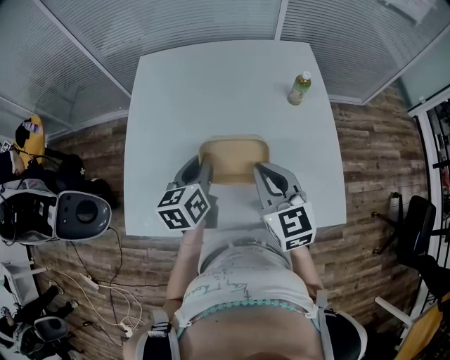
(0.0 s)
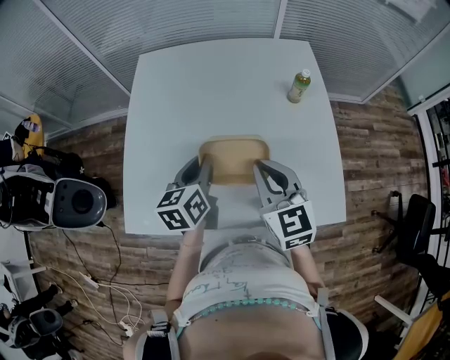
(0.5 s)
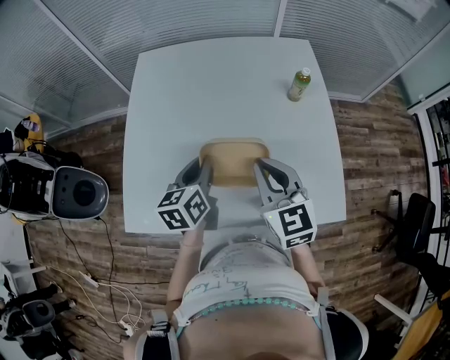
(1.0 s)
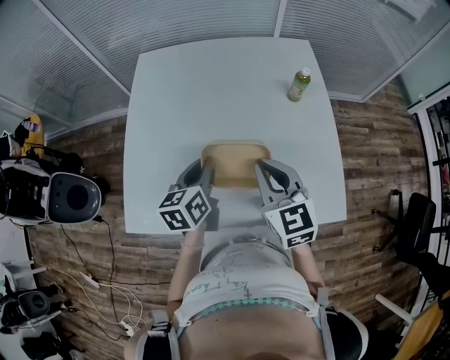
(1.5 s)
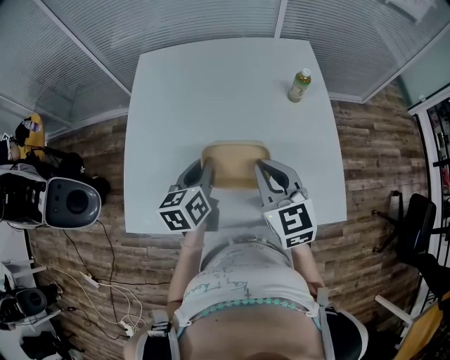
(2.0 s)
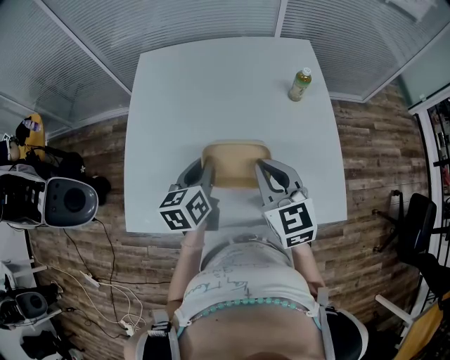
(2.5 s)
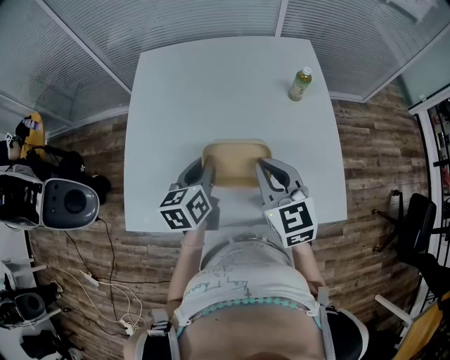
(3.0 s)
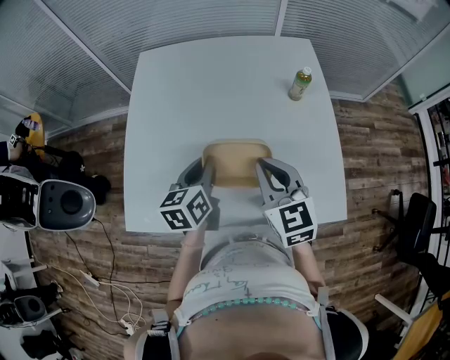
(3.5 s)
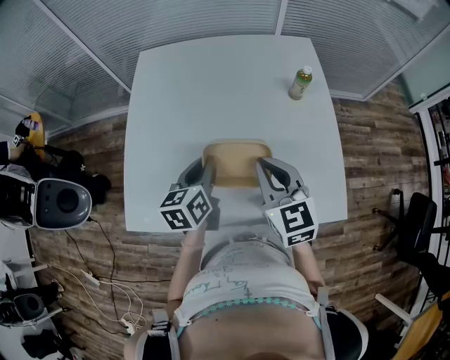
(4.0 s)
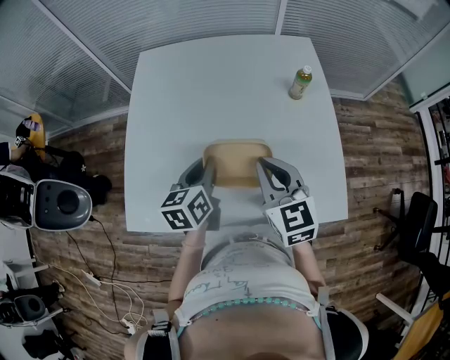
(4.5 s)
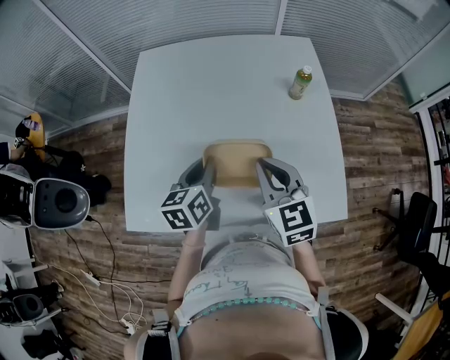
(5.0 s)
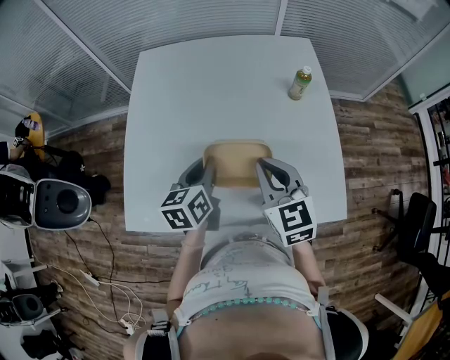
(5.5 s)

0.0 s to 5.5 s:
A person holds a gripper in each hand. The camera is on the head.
0.0 to 2.0 s: The grippers stay close to where they were, moving slightly.
2.0 to 3.5 s: Both grippers stay put.
3.5 to 5.5 s: The two grippers keep their place.

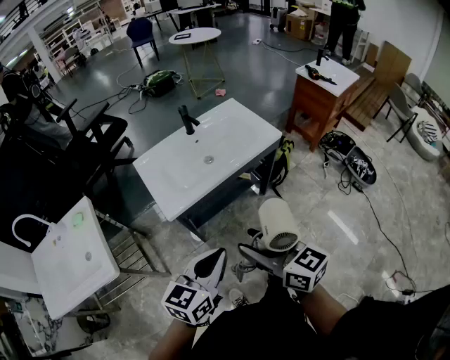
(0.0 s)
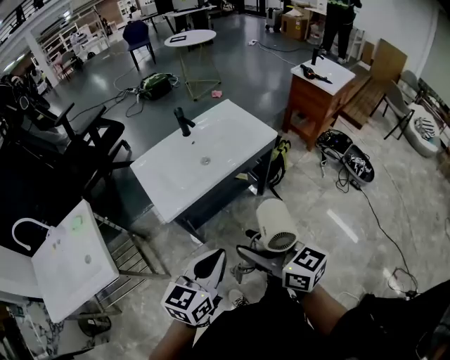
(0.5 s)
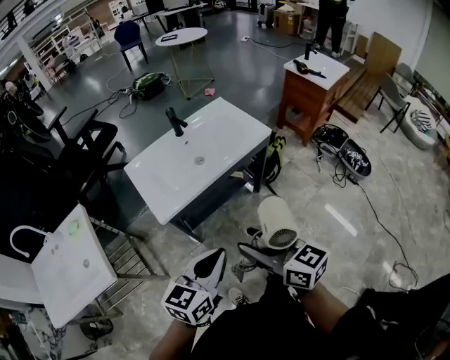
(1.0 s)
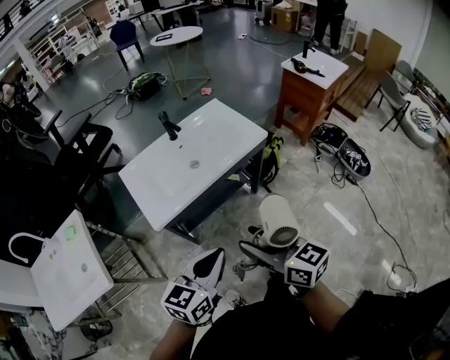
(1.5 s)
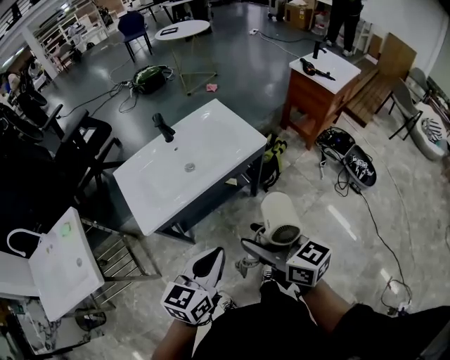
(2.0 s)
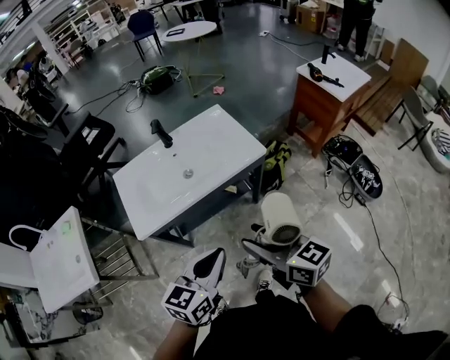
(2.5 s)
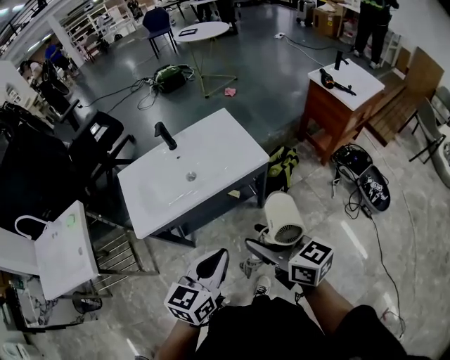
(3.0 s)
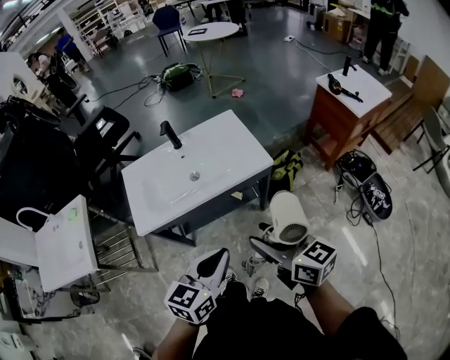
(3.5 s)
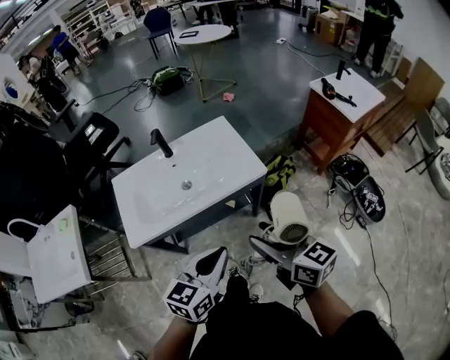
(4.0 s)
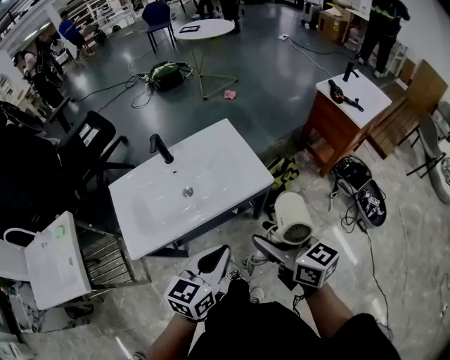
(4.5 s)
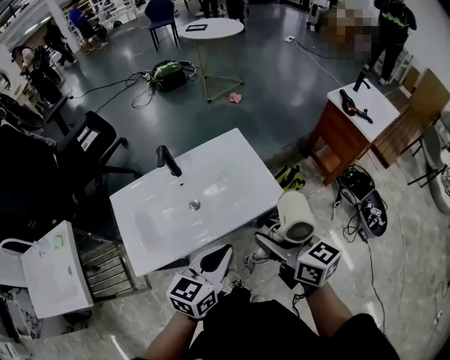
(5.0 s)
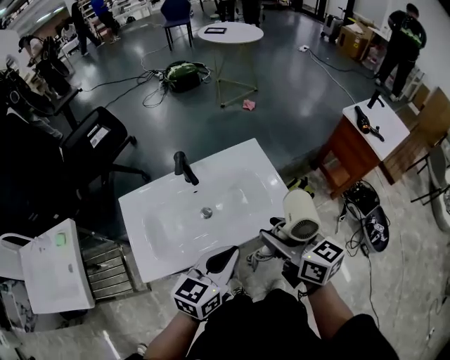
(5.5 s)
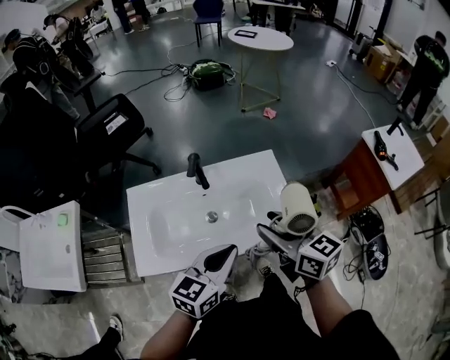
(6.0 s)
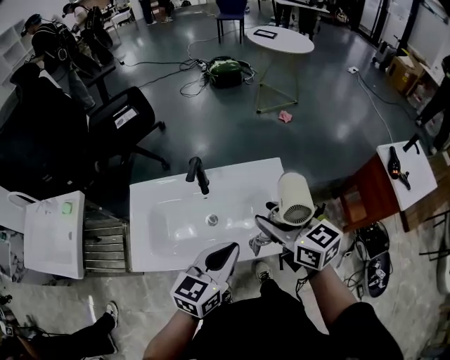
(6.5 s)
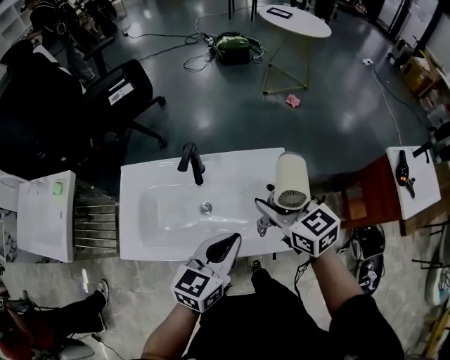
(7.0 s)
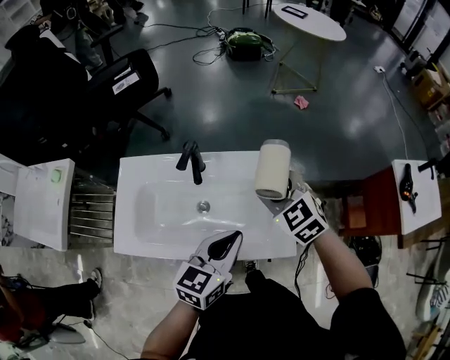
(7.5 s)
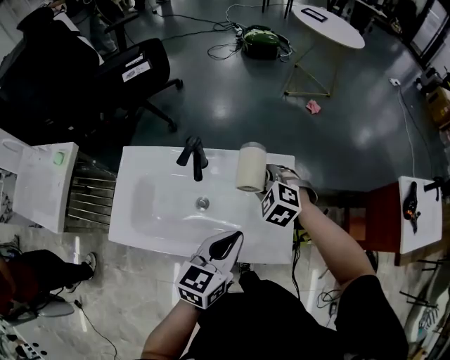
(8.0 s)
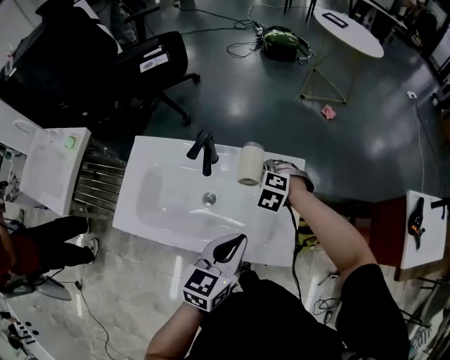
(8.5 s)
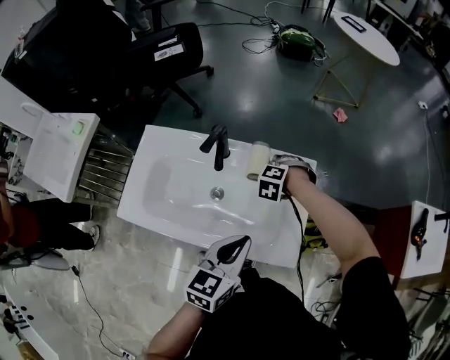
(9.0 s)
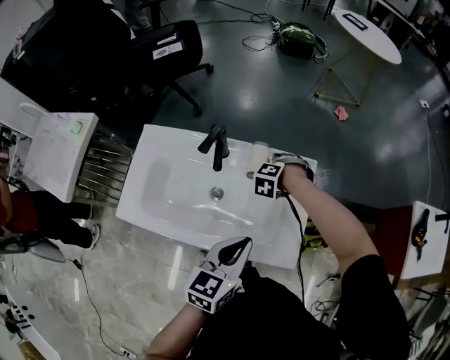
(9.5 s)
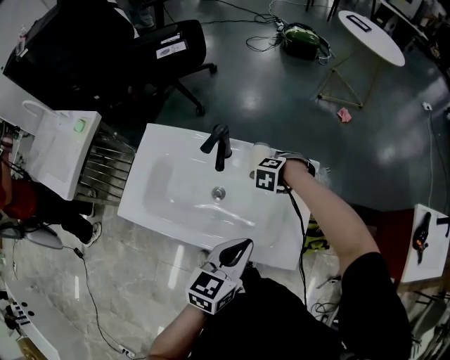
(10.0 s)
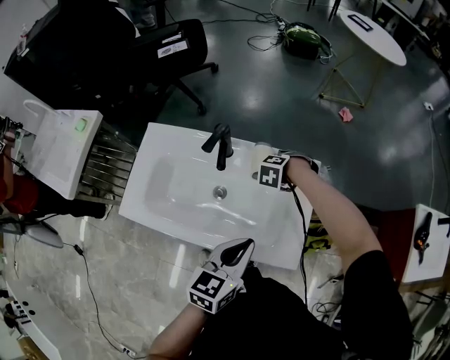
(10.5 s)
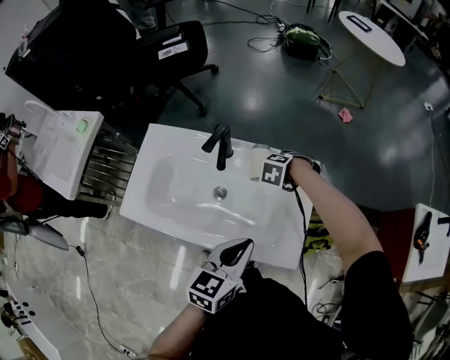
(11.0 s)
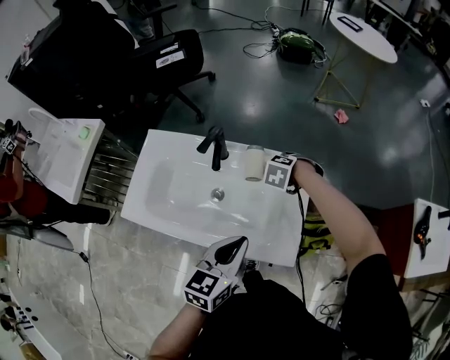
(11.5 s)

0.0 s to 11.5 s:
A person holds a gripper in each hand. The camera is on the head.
0.0 to 2.0 s: The grippers both shift to the right and forward by roughly 15 cm.
2.0 to 4.0 s: The grippers both shift to the right and forward by some 15 cm.
4.0 to 6.0 s: The two grippers go roughly 25 cm forward.
6.0 to 7.5 s: The right gripper travels forward and downward by some 20 cm, and rotates around the line of its fingers by about 40 degrees, counterclockwise from behind; the left gripper is displaced forward and to the right by some 10 cm.
7.5 to 9.5 s: The right gripper goes some 20 cm downward, and tips its fingers downward by some 40 degrees.
9.5 to 11.5 s: There are only small adjustments of the grippers.

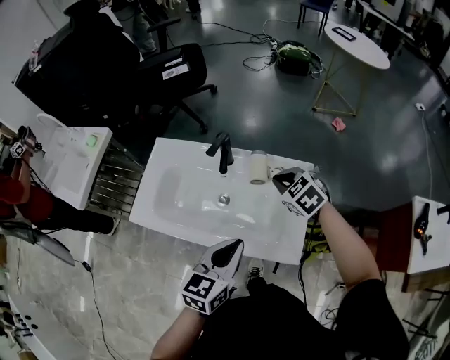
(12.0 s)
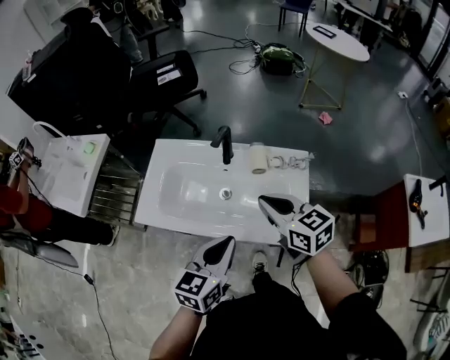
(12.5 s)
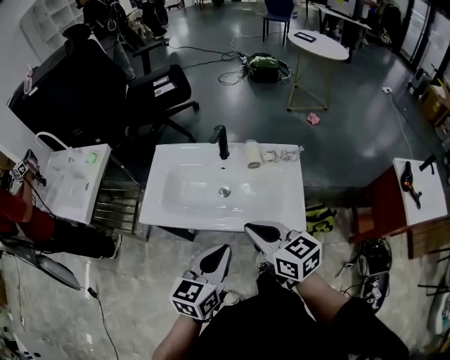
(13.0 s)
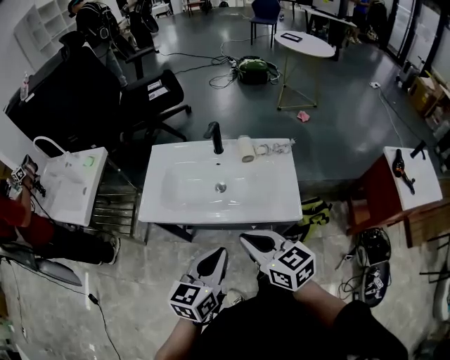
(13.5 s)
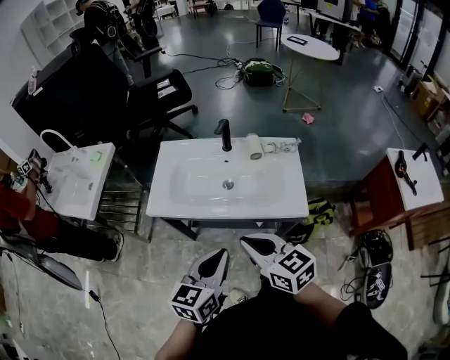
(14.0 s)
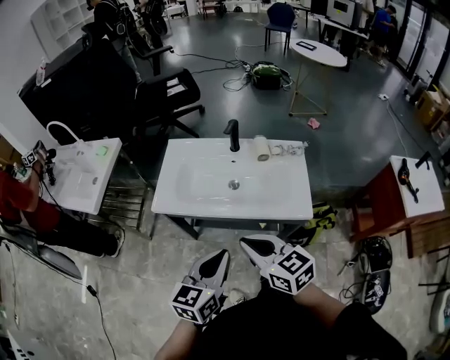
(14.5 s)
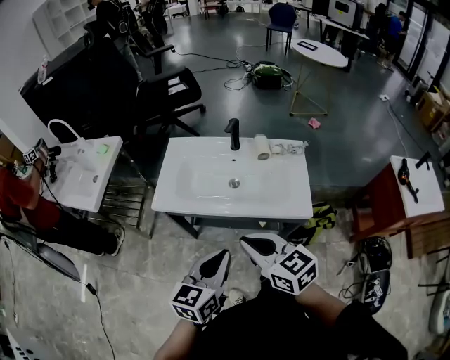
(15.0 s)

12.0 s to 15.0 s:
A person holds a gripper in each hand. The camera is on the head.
12.0 to 13.5 s: The left gripper shifts about 20 cm backward and to the left. Meanwhile the right gripper goes roughly 35 cm backward and to the left, and tilts its fingers some 30 degrees upward.
13.5 to 15.0 s: The left gripper moves approximately 5 cm. The right gripper moves to the left, approximately 5 cm.

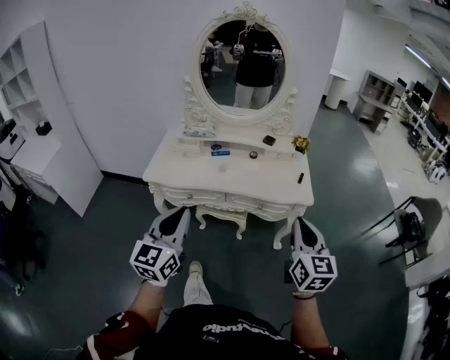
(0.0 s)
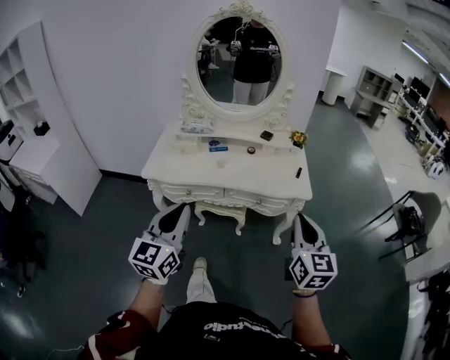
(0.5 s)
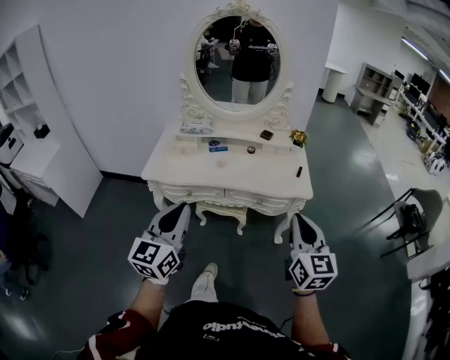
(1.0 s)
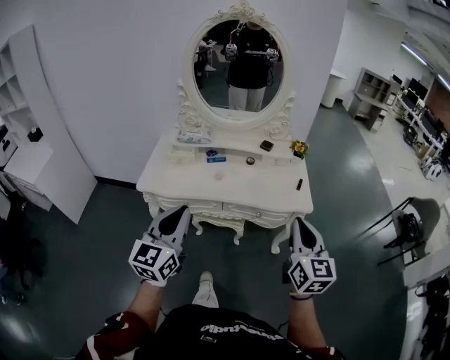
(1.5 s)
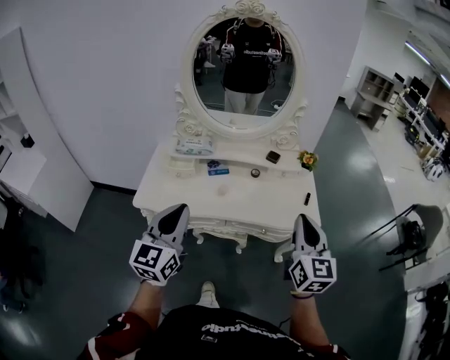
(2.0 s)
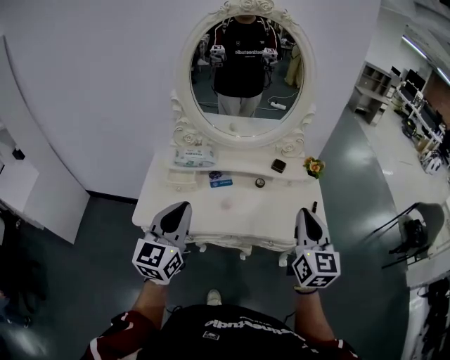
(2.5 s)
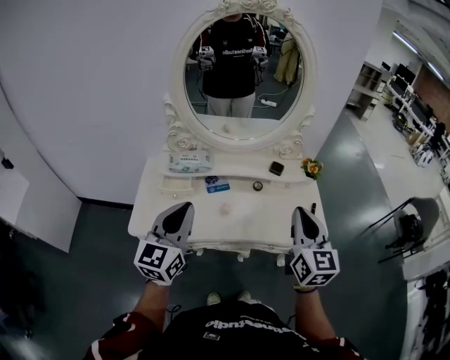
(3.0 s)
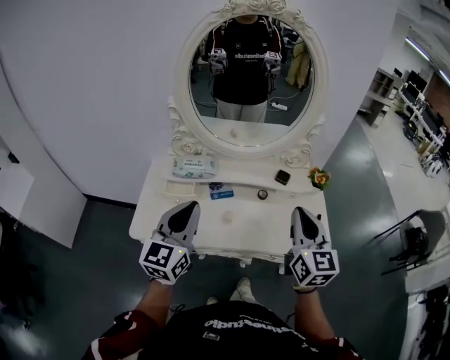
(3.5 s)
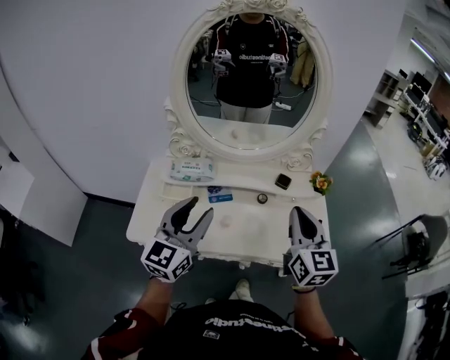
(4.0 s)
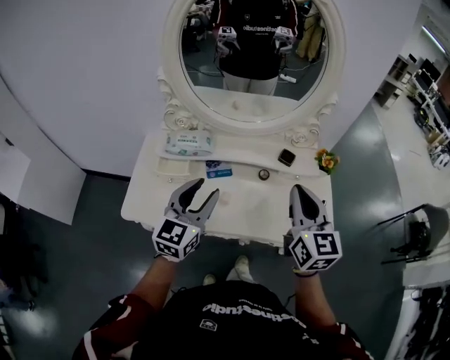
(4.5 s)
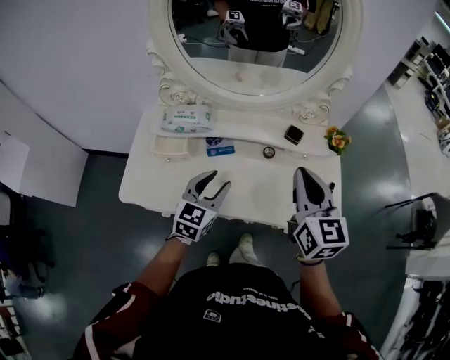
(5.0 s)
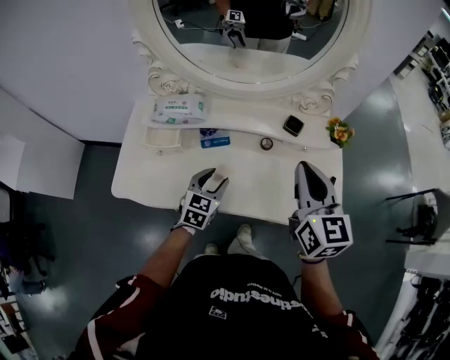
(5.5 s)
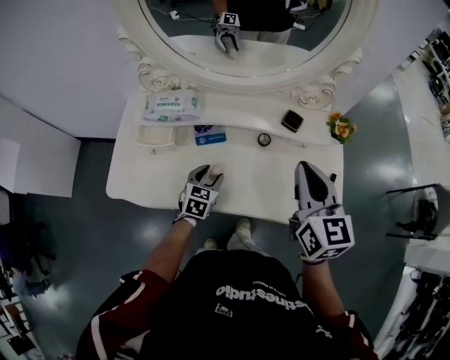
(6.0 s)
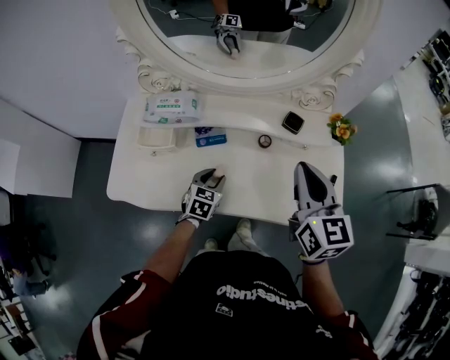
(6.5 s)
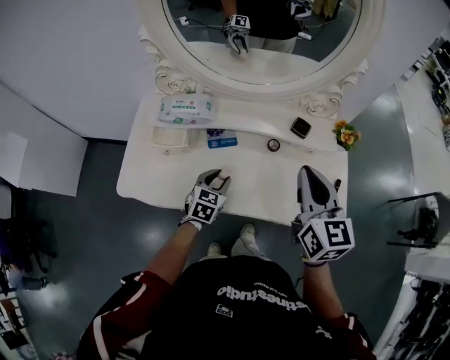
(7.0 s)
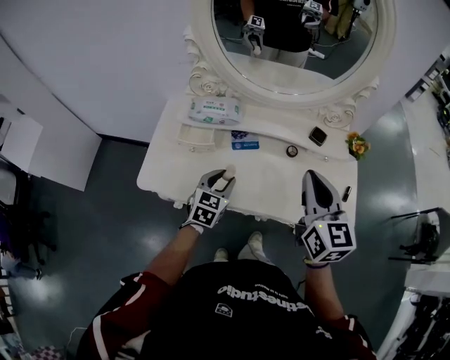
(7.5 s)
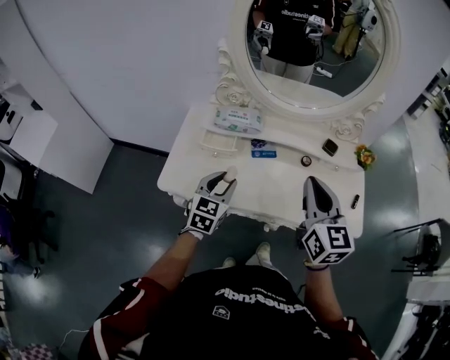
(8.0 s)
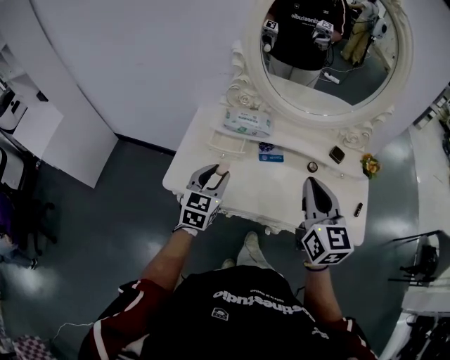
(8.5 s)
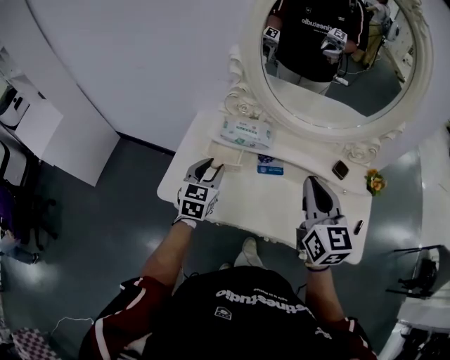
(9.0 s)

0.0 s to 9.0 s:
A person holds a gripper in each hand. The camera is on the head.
0.0 to 2.0 s: Both grippers travel together forward, approximately 15 cm.
2.0 to 4.5 s: The two grippers go approximately 20 cm forward. The left gripper opens its fingers.
4.5 to 7.0 s: The right gripper goes approximately 5 cm downward; the left gripper shifts about 25 cm downward, and points its fingers some 30 degrees further downward.
7.0 to 9.0 s: The right gripper travels to the left by roughly 15 cm, while the left gripper moves to the left and upward, some 25 cm, and rotates approximately 20 degrees.
